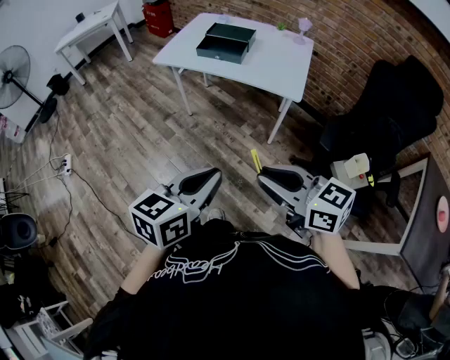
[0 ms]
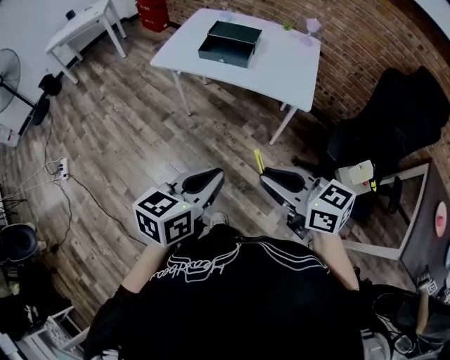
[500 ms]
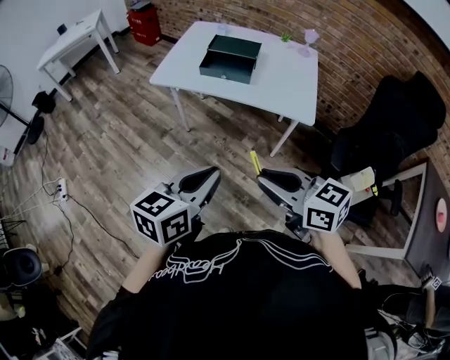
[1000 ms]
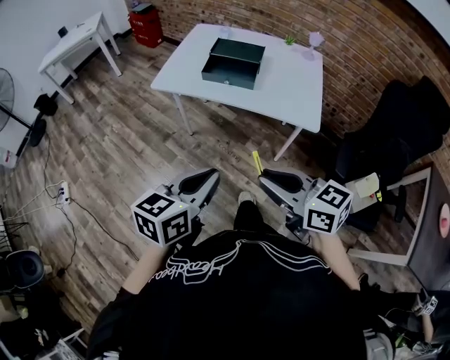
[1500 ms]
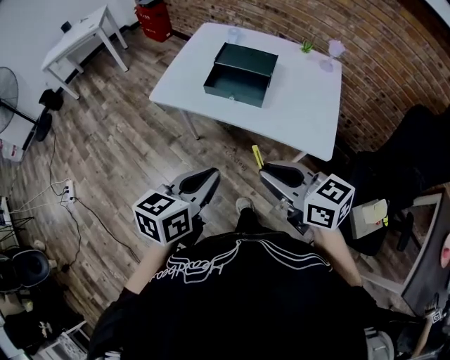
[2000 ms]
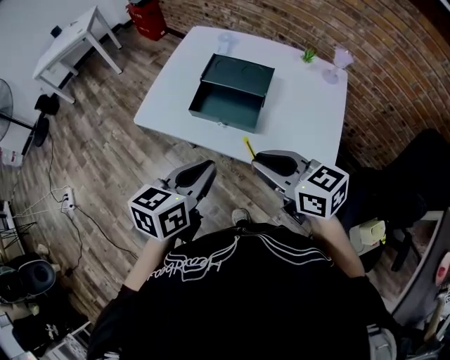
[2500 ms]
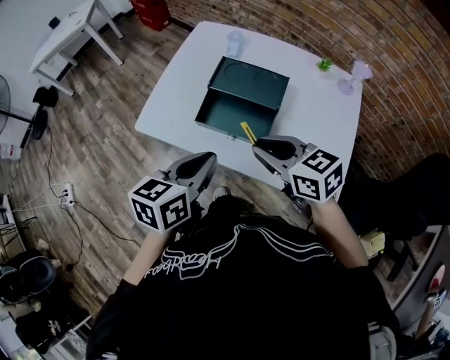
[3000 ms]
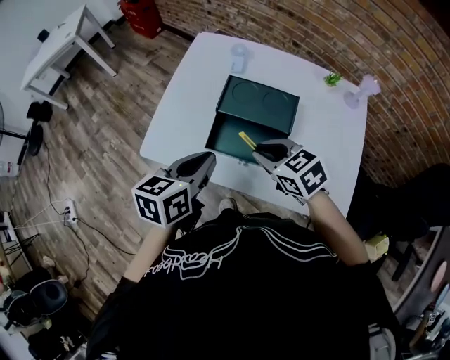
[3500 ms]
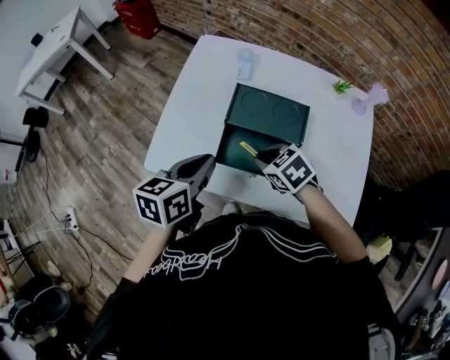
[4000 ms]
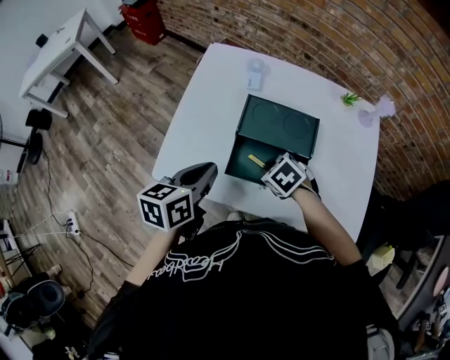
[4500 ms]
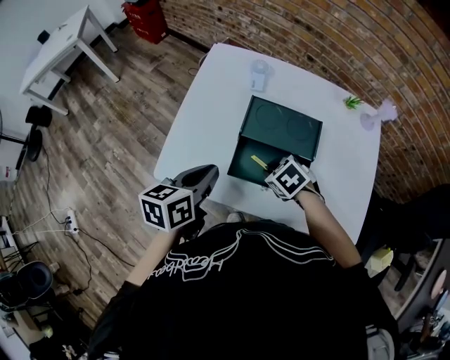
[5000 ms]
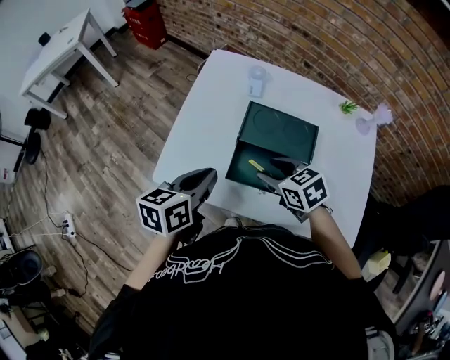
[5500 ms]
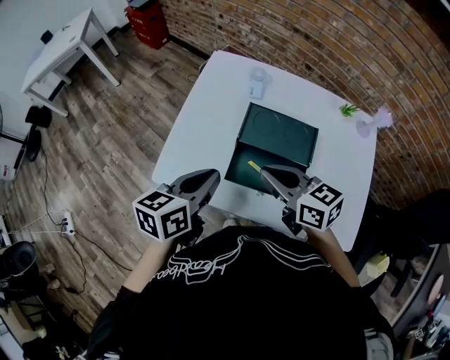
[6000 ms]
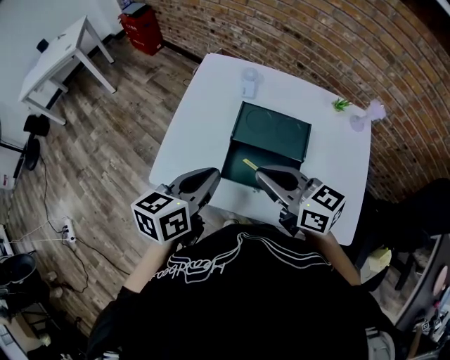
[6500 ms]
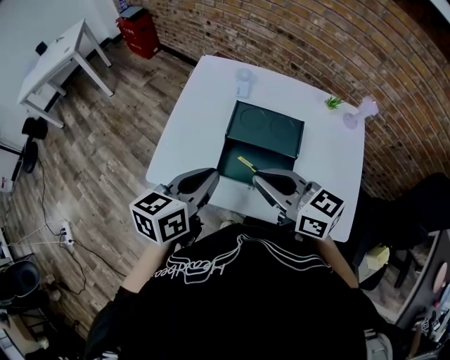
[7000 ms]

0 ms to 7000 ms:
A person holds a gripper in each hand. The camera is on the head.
0 ms to 2000 ms: The two grippers go roughly 30 cm forward.
2000 ms to 3500 ms: The two grippers go approximately 30 cm forward. The right gripper changes its angle by approximately 30 degrees.
3500 ms to 5000 ms: The left gripper travels forward and to the left by about 10 cm; the right gripper goes some 15 cm downward, and changes its angle by about 30 degrees.
5000 ms to 7000 ms: The right gripper goes about 25 cm upward, points its fingers some 60 degrees further upward, and opens, then closes once more, while the left gripper heads upward, covering approximately 5 cm.

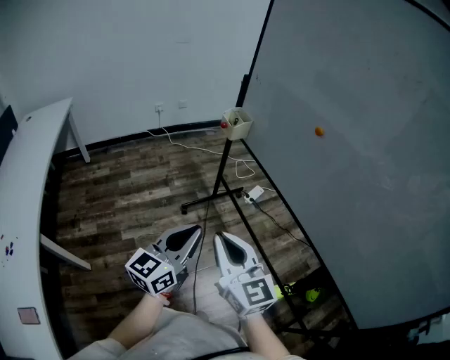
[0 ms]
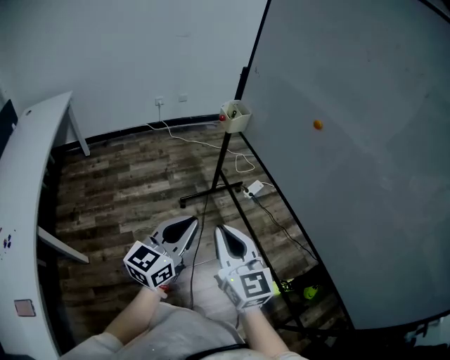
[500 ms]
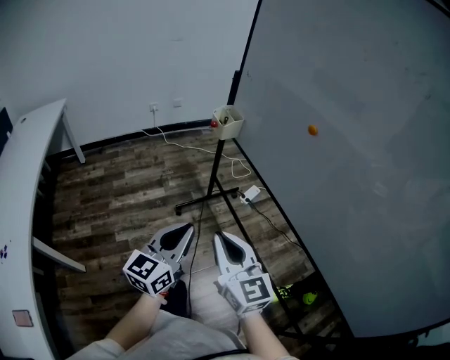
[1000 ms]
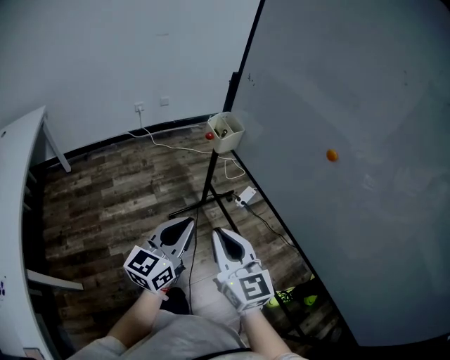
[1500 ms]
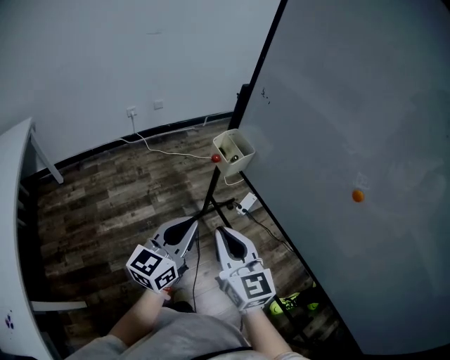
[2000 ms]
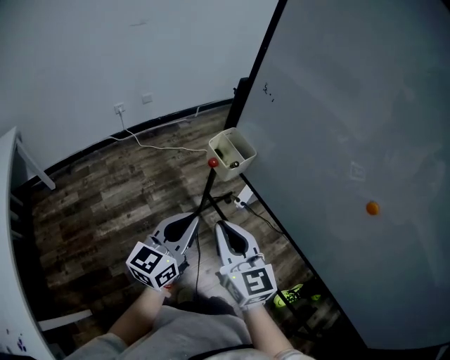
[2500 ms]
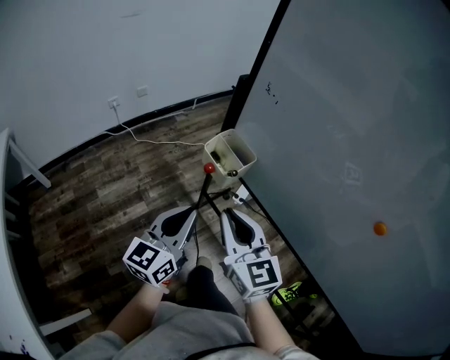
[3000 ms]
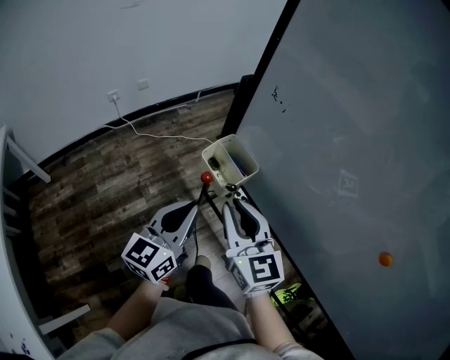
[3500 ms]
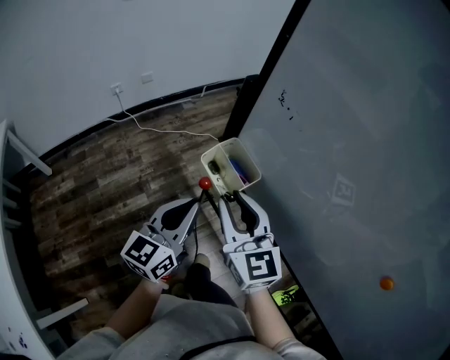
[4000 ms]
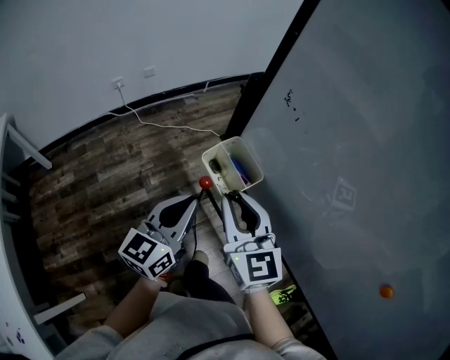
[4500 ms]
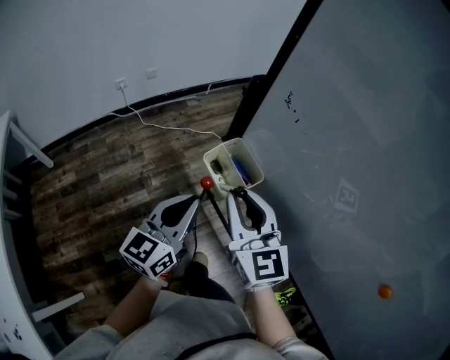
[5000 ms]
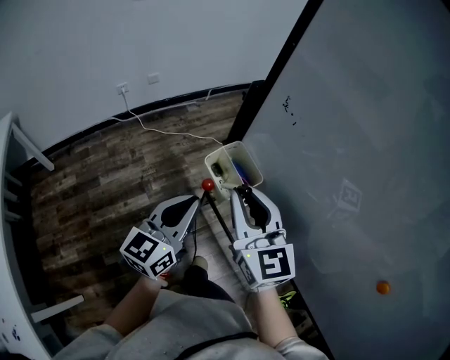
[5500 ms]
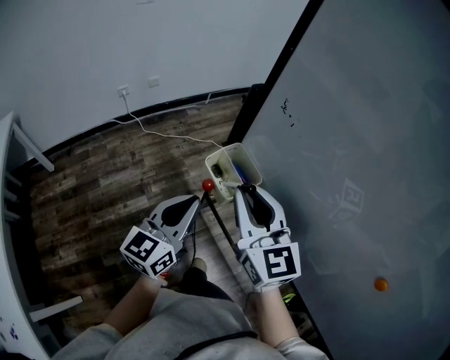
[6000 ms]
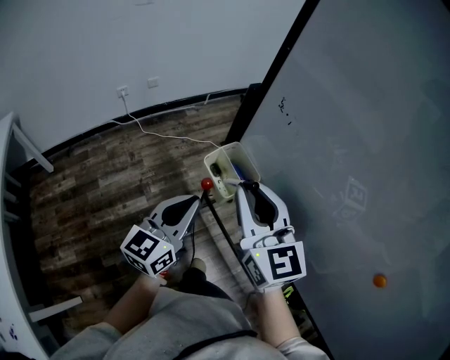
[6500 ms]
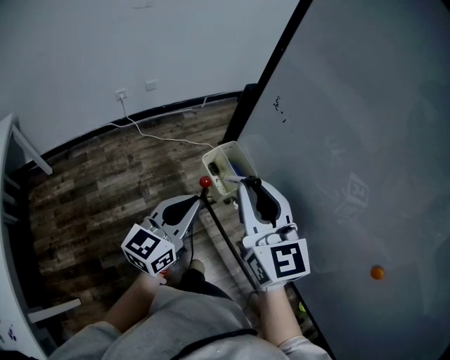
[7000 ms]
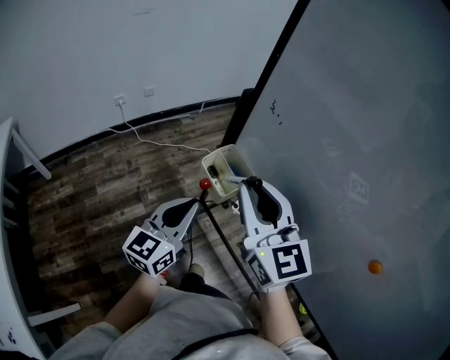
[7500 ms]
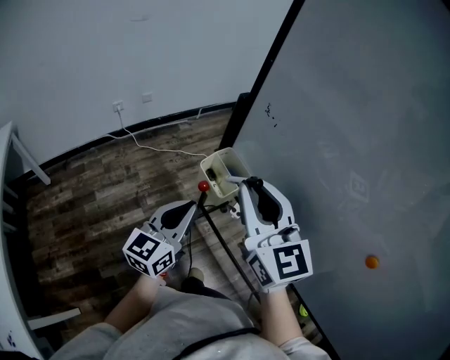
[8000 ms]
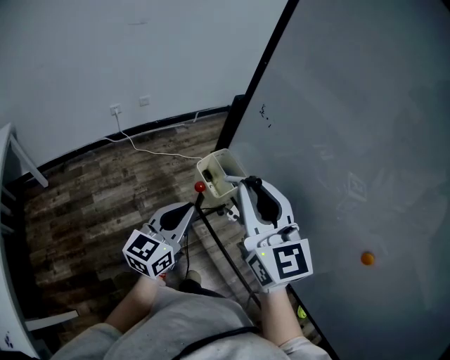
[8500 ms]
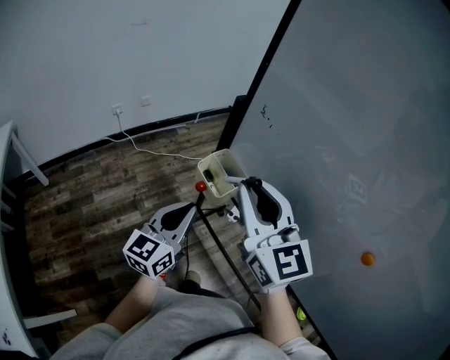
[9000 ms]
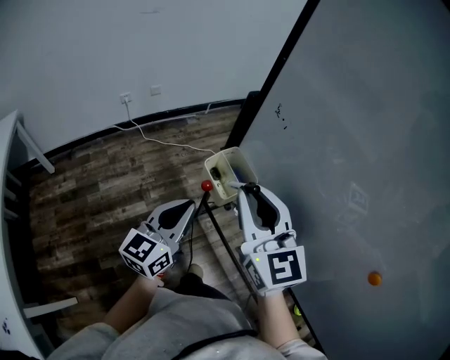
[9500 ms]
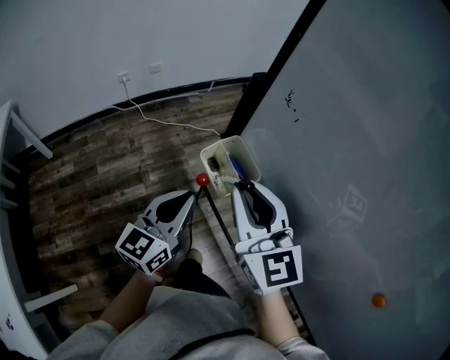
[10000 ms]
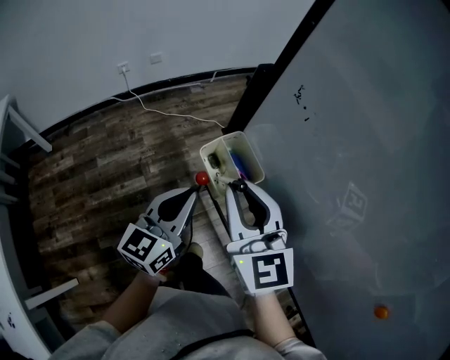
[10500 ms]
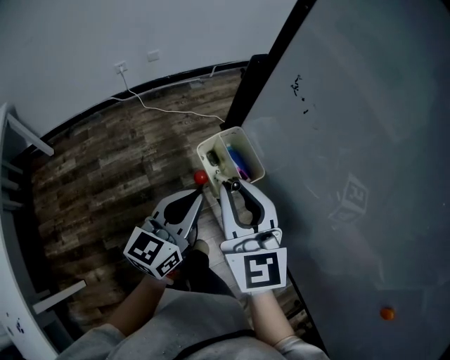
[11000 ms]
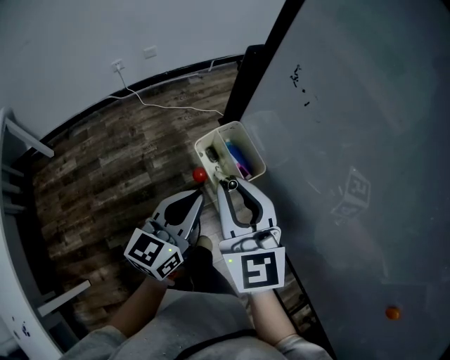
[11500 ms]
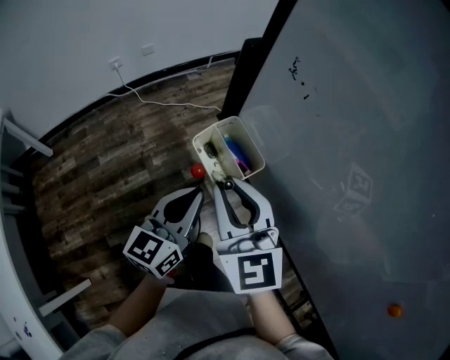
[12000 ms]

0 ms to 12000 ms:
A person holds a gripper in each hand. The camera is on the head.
0 ms to 2000 ms: The grippers both shift forward by some 35 cm.
2000 ms to 4000 ms: Both grippers travel together forward, approximately 25 cm.
4000 ms to 6000 ms: The right gripper travels upward by approximately 5 cm.
6000 ms to 8000 ms: The right gripper shifts roughly 5 cm upward.
8000 ms to 10000 ms: The right gripper is displaced downward by about 5 cm.
10000 ms to 12000 ms: The right gripper travels downward by some 5 cm.

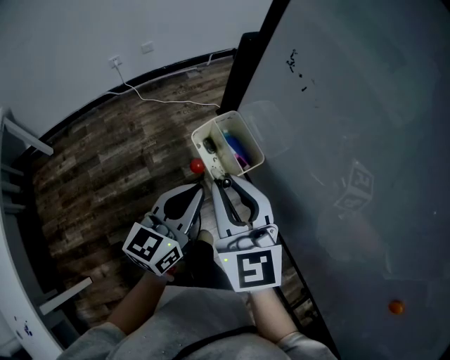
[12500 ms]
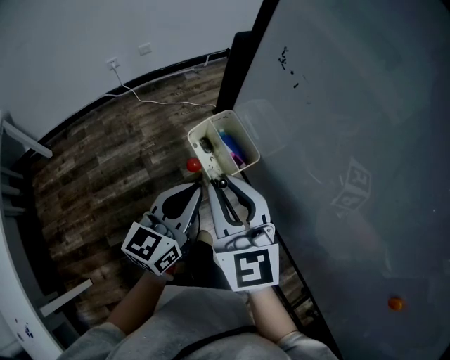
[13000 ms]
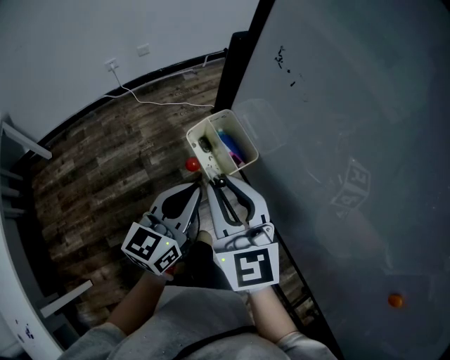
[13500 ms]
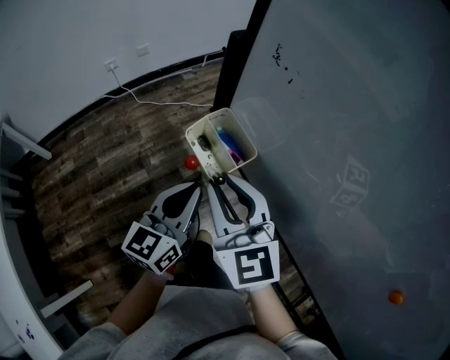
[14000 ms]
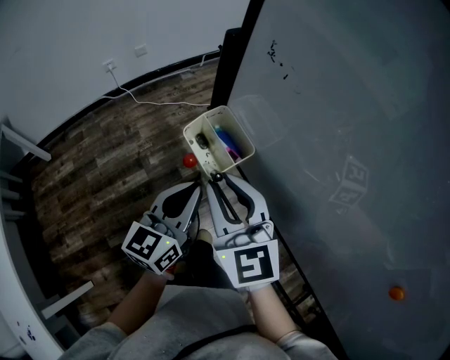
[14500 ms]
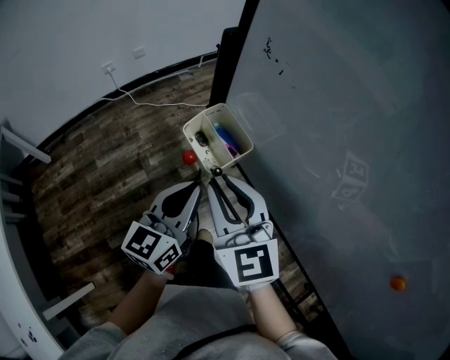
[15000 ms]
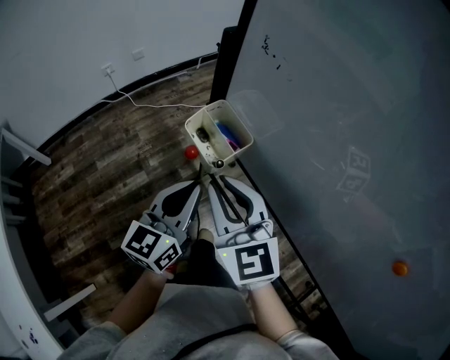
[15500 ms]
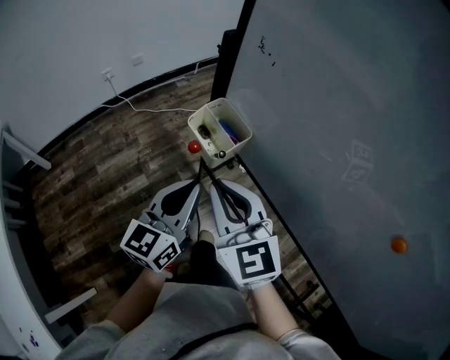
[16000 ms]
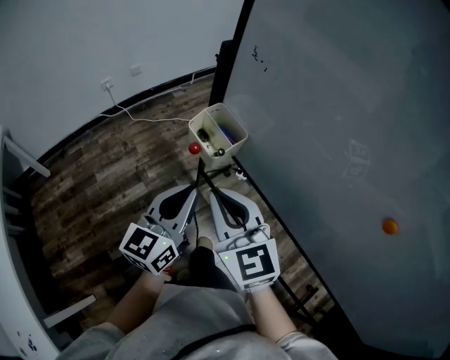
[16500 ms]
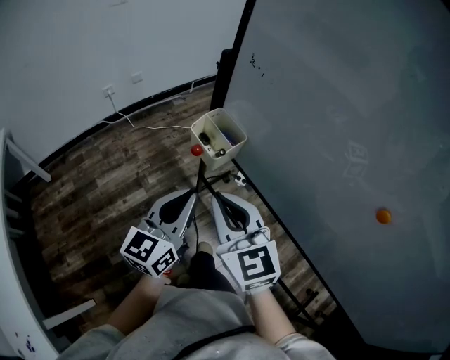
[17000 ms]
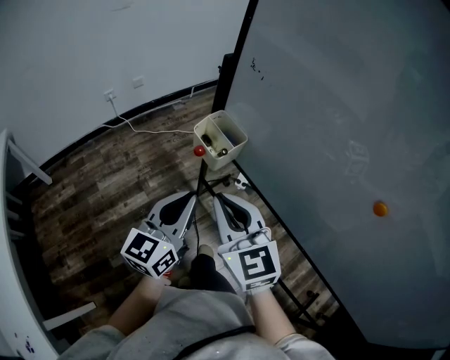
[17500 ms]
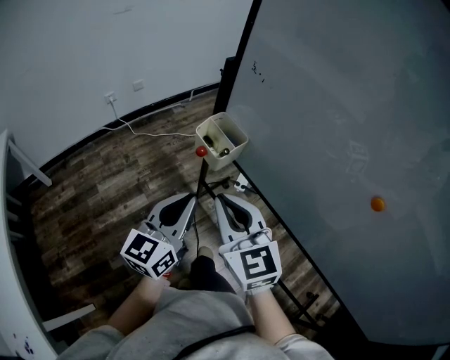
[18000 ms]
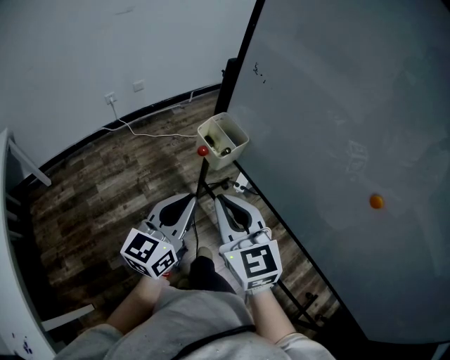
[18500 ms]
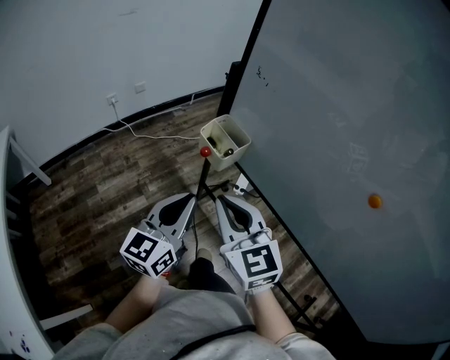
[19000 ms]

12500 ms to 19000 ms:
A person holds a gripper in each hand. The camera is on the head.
12500 ms to 14500 ms: The grippers stay close to where they were, moving slightly.
14500 ms to 17000 ms: The left gripper moves backward and upward, some 10 cm. The right gripper is displaced backward by about 10 cm.
17000 ms to 19000 ms: The left gripper ends up roughly 5 cm from where it was.

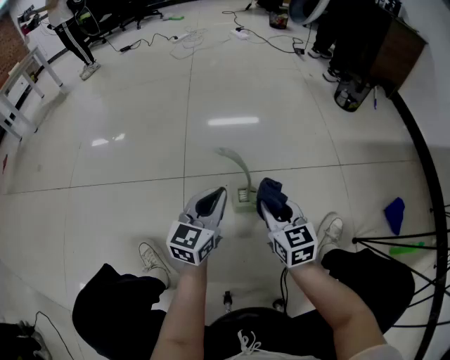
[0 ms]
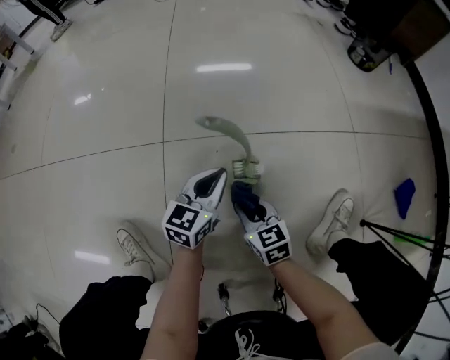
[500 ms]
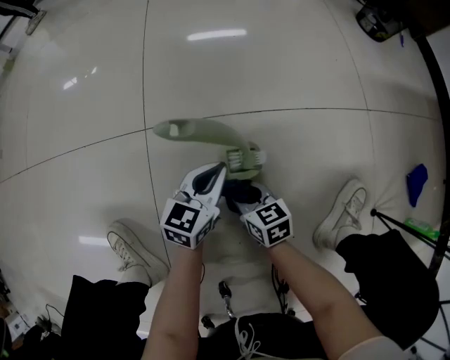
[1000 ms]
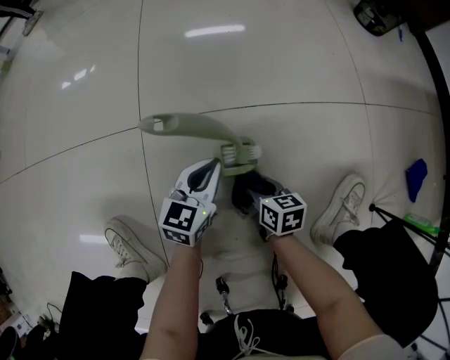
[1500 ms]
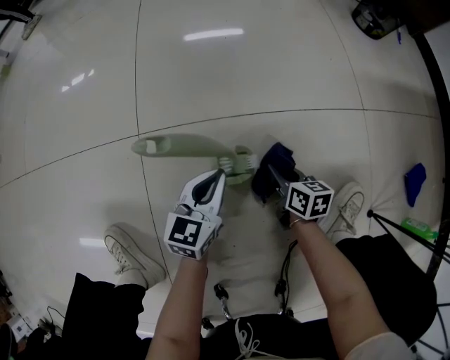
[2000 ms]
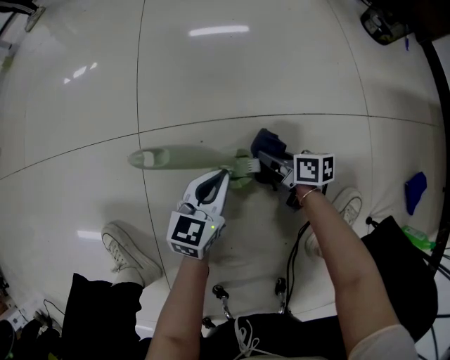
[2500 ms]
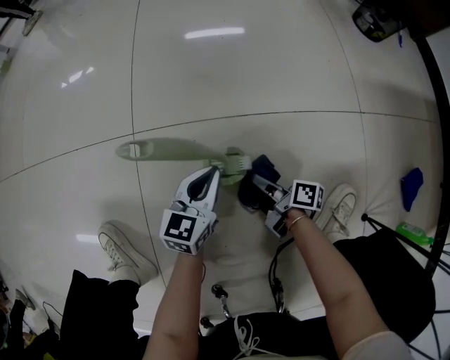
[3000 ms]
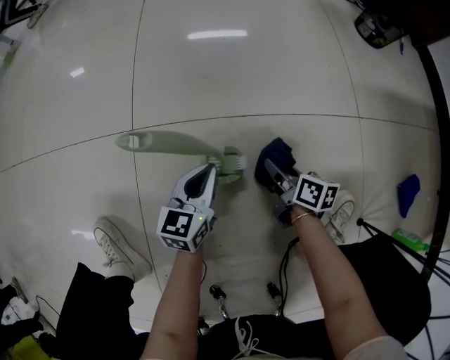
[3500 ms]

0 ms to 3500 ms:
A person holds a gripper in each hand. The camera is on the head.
0 ms to 2000 ms: Both grippers move downward, about 25 cm. The right gripper turns by some 40 degrees.
2000 ms to 3500 ms: The right gripper goes forward and backward, approximately 5 cm each way, reversing 2 times.
